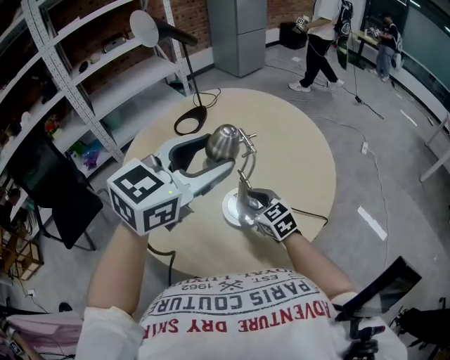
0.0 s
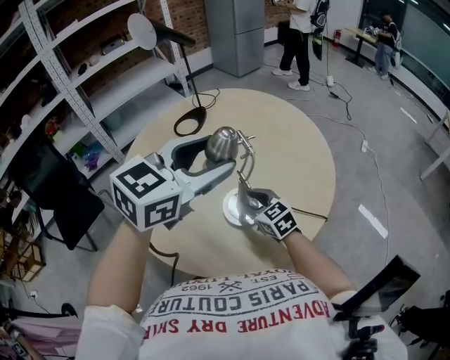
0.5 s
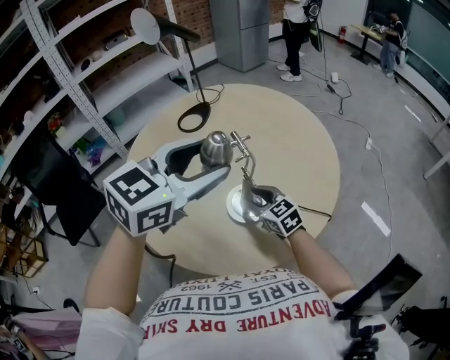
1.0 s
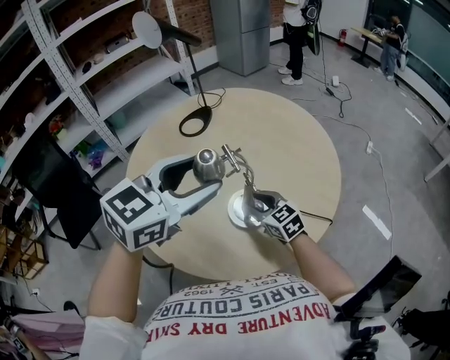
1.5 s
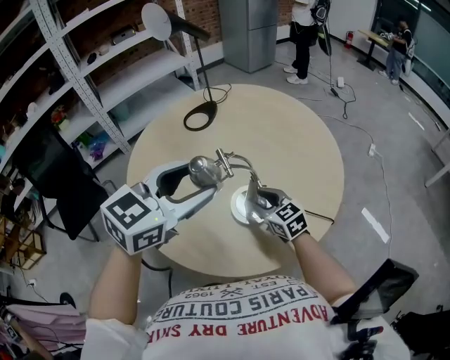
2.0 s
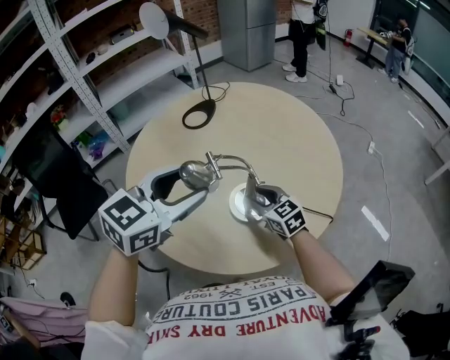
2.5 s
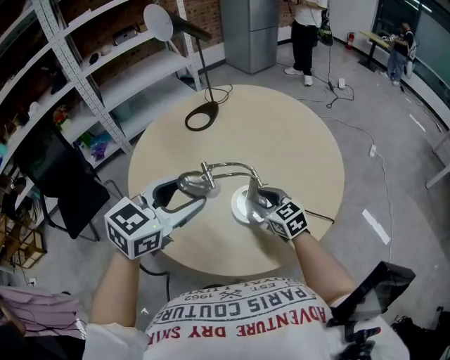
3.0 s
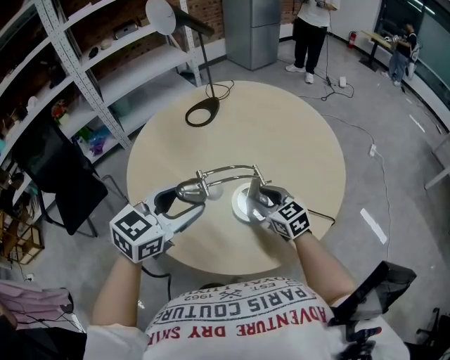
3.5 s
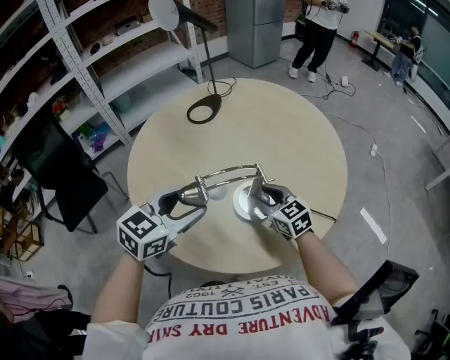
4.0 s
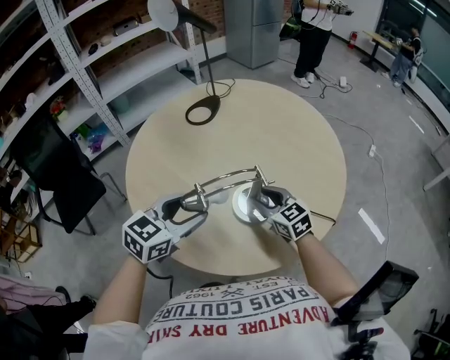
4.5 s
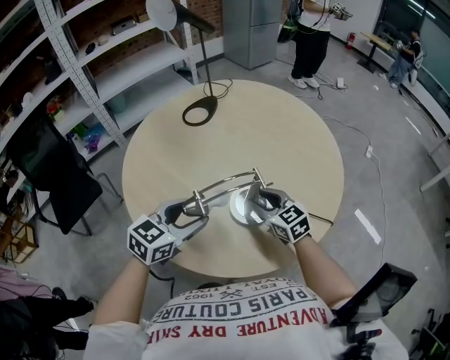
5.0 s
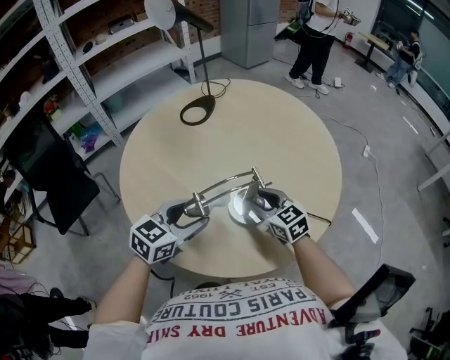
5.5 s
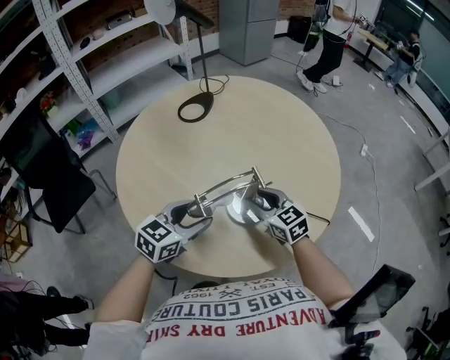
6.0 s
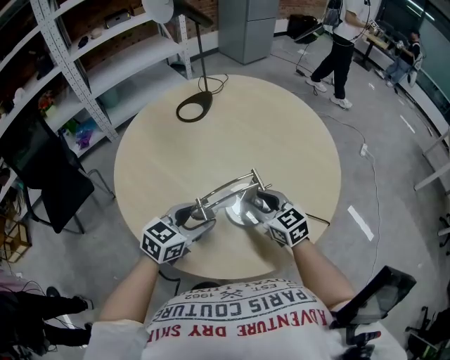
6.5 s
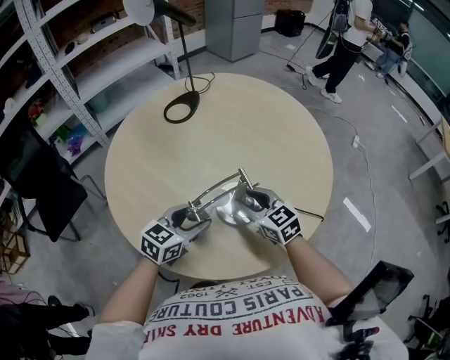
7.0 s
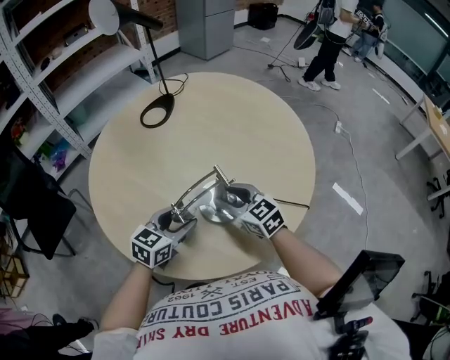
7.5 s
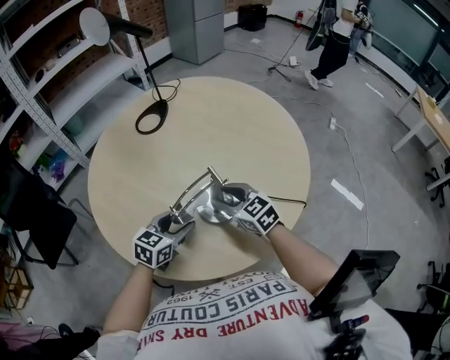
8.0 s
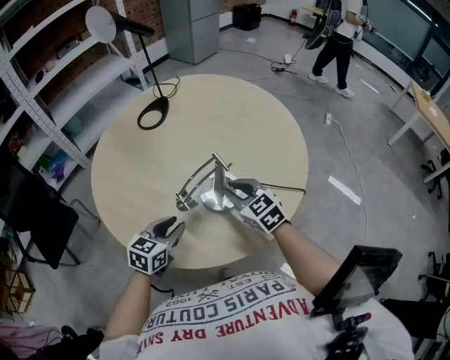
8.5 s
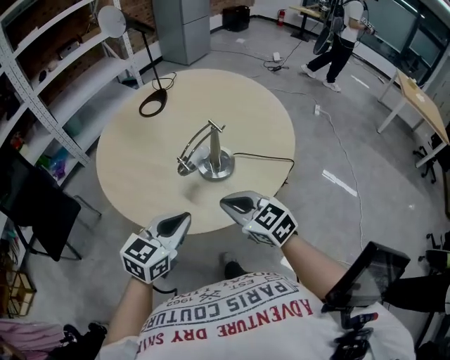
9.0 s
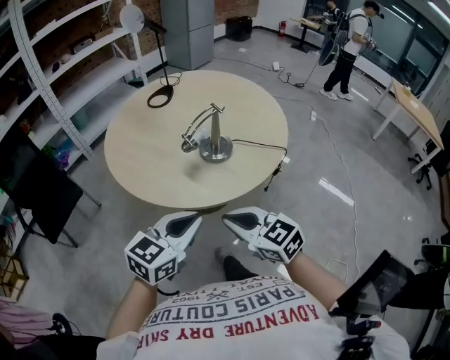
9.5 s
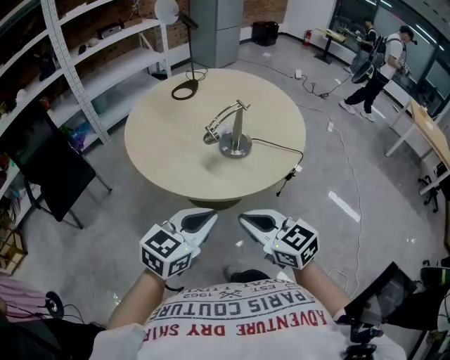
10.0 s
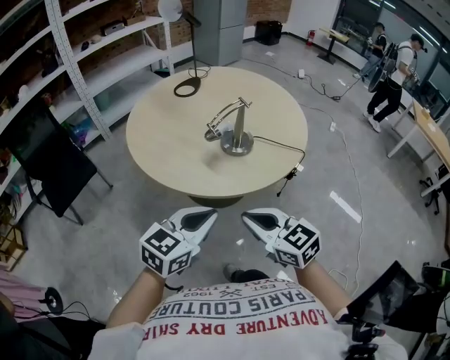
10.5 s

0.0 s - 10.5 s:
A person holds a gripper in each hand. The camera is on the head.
0.0 s - 2.0 s: The left gripper is displaced to the left by approximately 5 cm.
2.0 s - 4.0 s: The left gripper travels downward by roughly 10 cm.
4.0 s - 6.5 s: The left gripper heads downward, covering roughly 10 cm.
6.5 s - 8.5 s: The left gripper ends up approximately 5 cm from where it was. Meanwhile the right gripper closes up.
8.5 s - 10.5 s: The left gripper heads backward and upward, covering approximately 30 cm, and closes; the right gripper is displaced backward by some 35 cm.

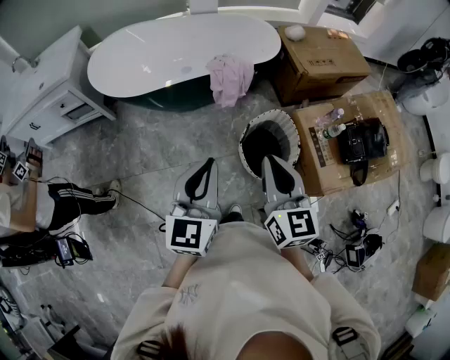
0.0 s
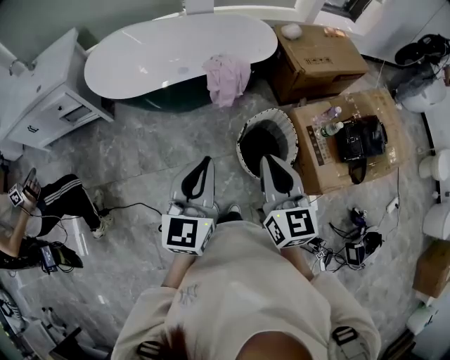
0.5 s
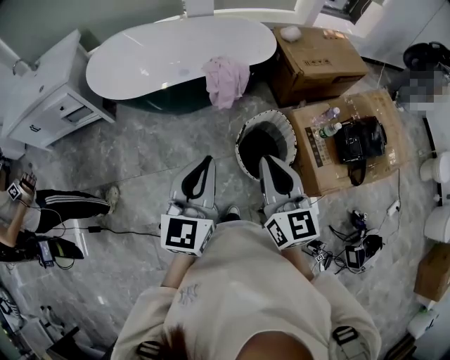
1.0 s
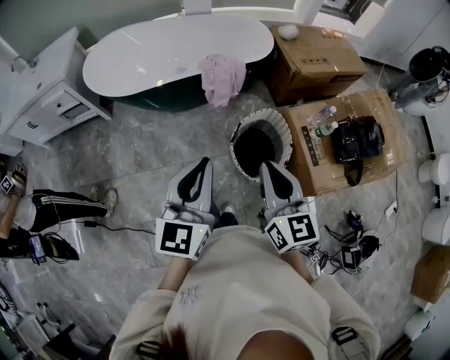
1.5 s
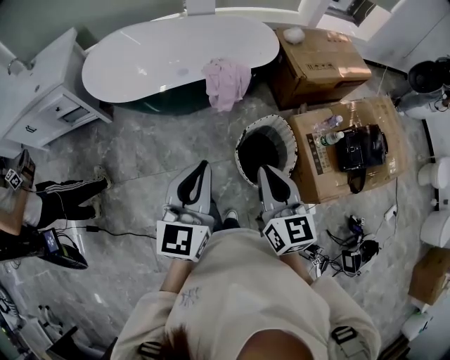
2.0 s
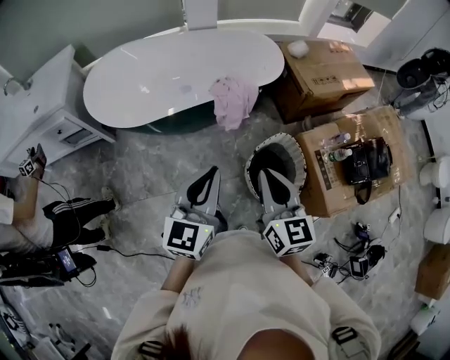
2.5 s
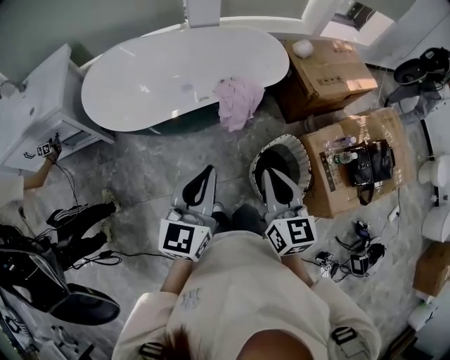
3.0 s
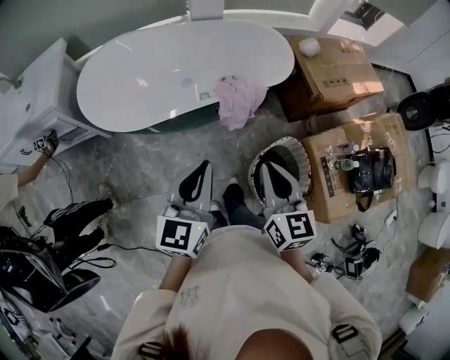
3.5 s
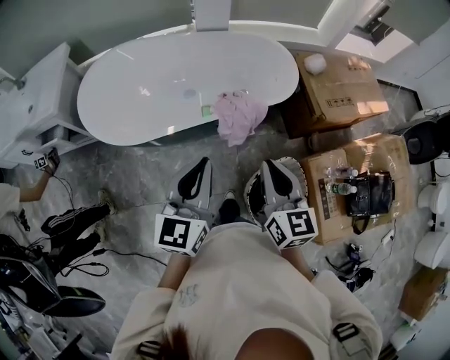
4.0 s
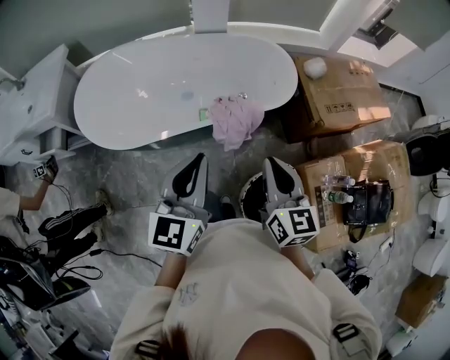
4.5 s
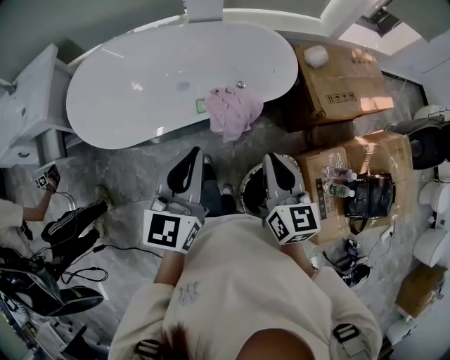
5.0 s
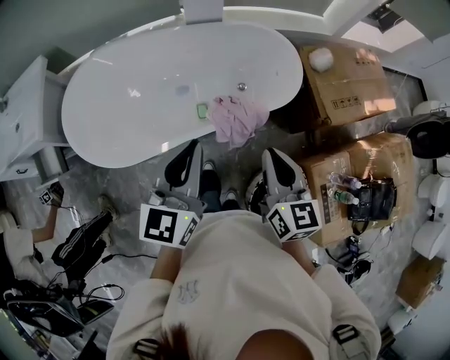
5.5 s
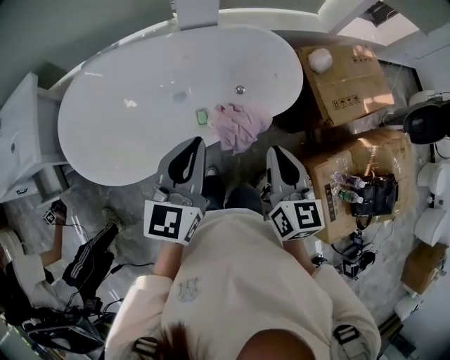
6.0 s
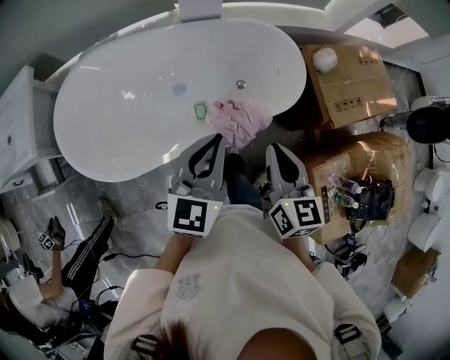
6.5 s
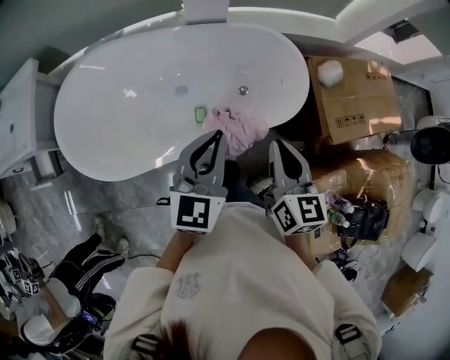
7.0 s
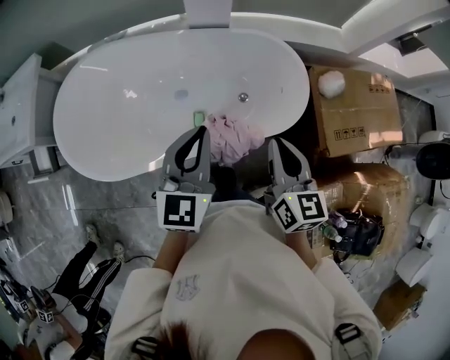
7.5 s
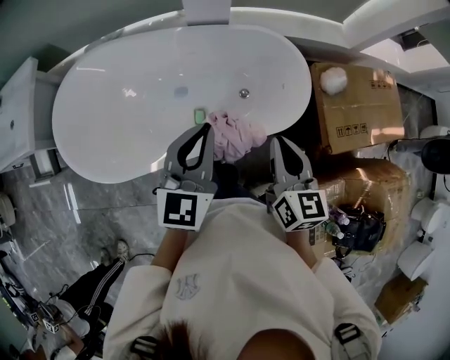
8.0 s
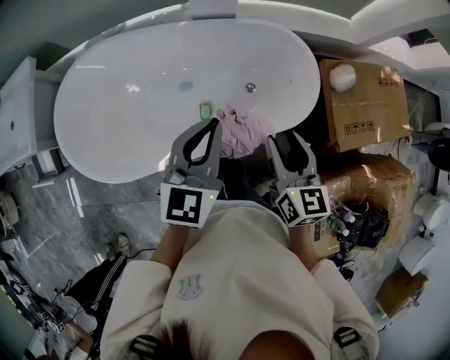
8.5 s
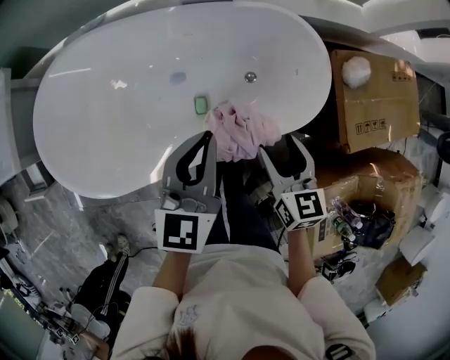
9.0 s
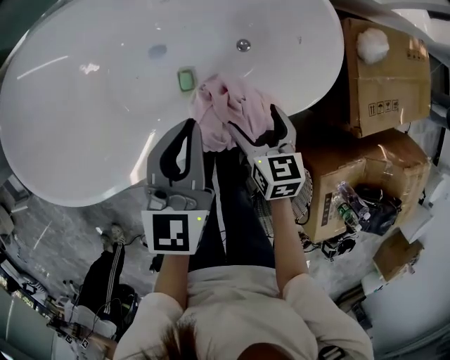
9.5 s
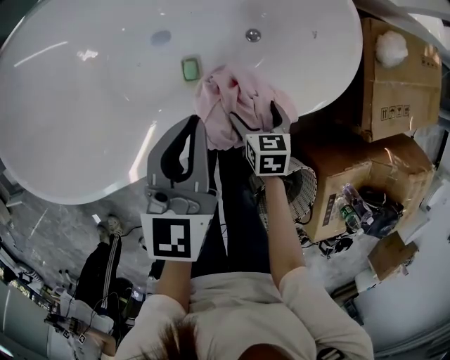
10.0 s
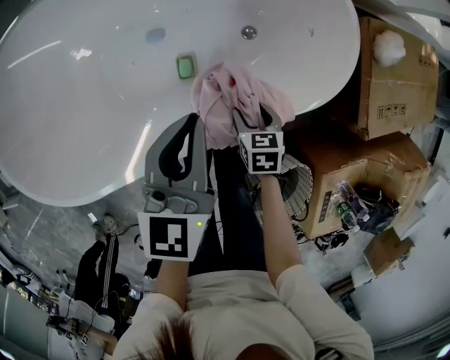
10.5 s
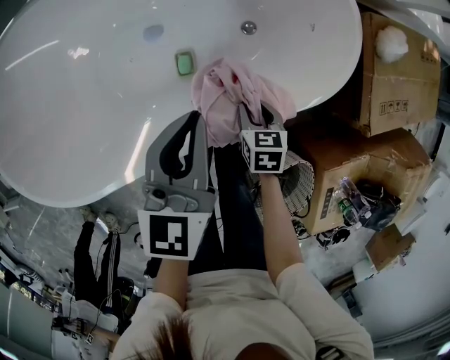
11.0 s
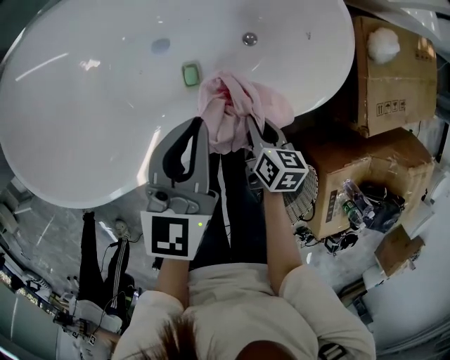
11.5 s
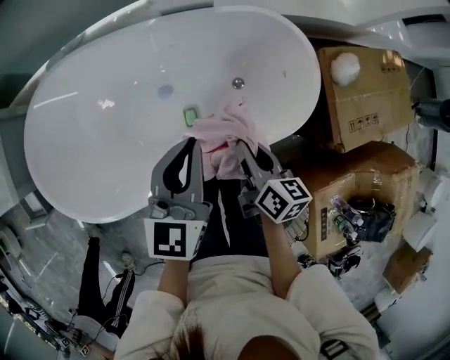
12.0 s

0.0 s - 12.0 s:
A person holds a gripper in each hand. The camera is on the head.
0.0 s - 2.0 s: The grippers move only a little.
2.0 s - 4.0 s: Both grippers move forward, approximately 30 cm.
4.0 s - 6.0 s: The two grippers go about 20 cm forward.
6.0 s - 8.0 s: Both grippers travel together forward and to the right, roughly 15 cm.
8.0 s - 10.0 s: The left gripper heads downward, covering some 25 cm. Meanwhile the right gripper moves downward, approximately 40 cm, points its fingers approximately 40 degrees further downward, and opens up.
10.0 s - 12.0 s: The left gripper goes some 15 cm upward. The right gripper heads upward, covering some 25 cm, changes its angle by some 40 degrees, and closes.

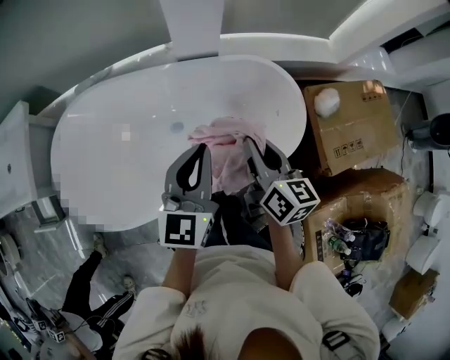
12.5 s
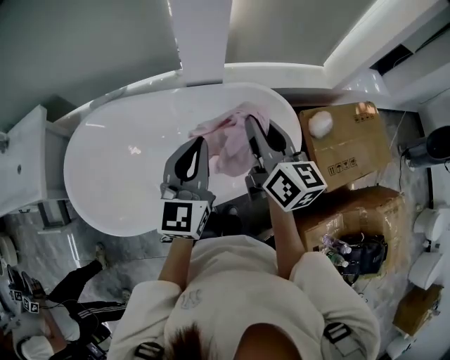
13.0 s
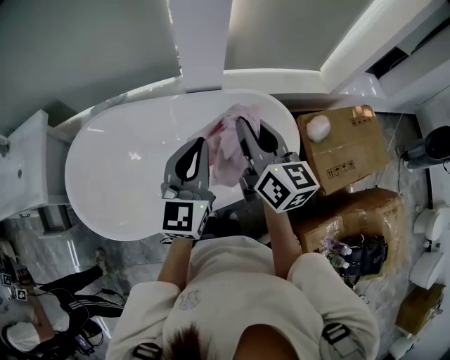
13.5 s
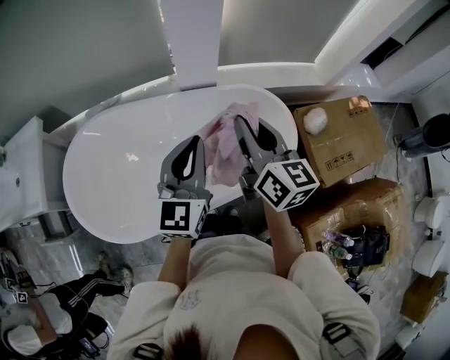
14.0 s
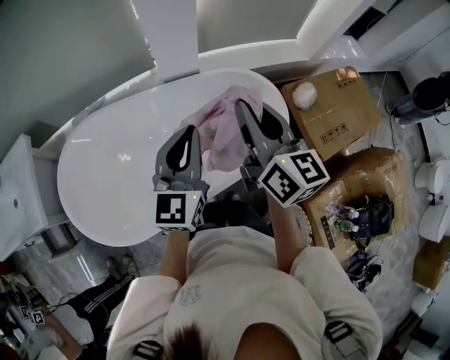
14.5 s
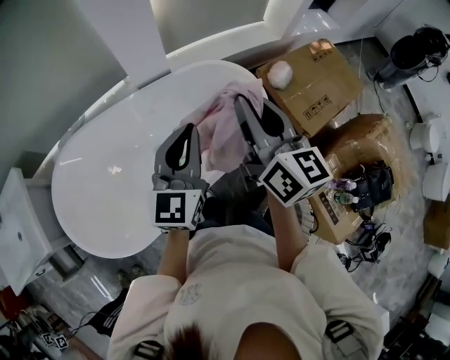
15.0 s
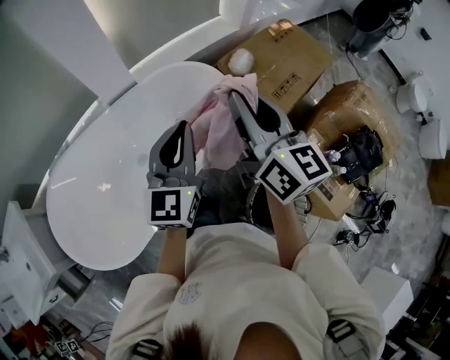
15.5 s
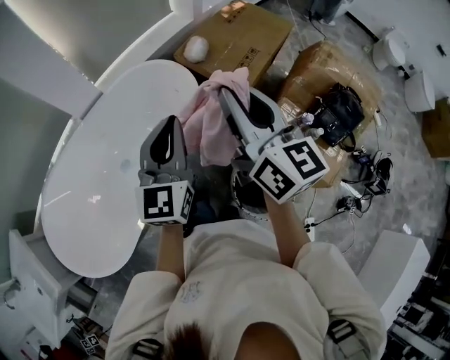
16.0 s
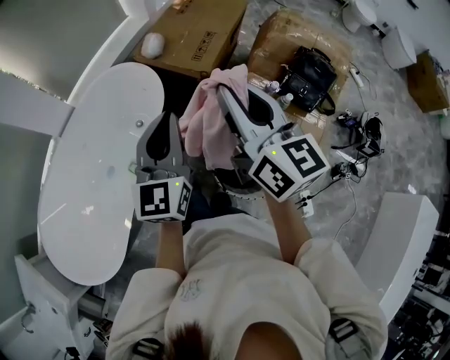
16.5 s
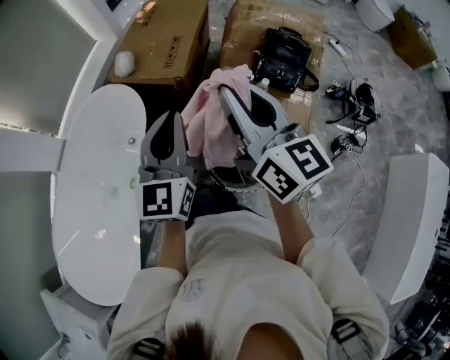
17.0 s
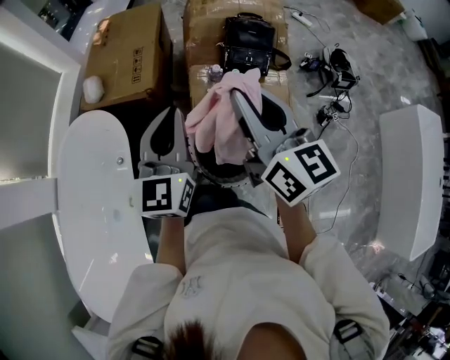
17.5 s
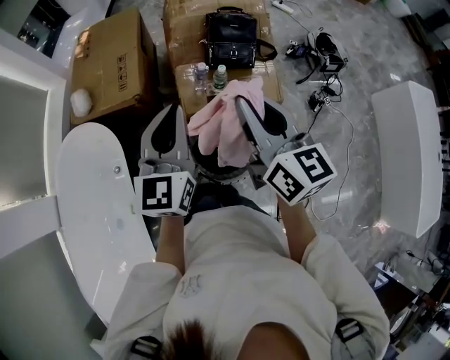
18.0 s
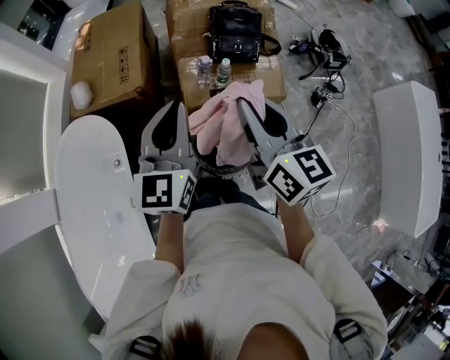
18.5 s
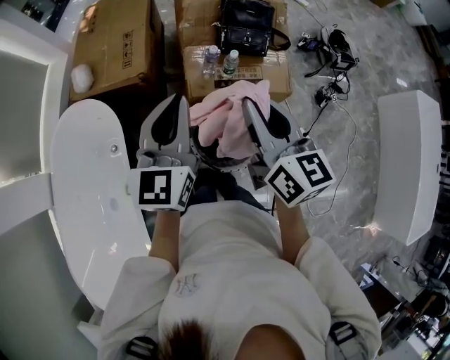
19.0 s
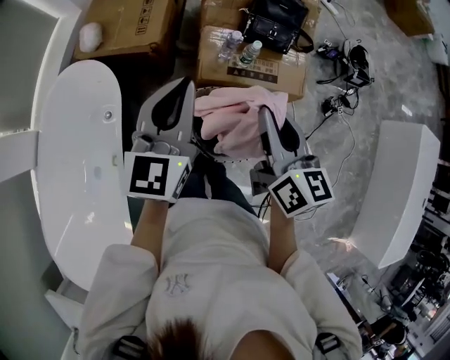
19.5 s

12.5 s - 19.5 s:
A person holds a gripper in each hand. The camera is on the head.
12.5 s - 14.5 s: The right gripper goes some 15 cm upward. Meanwhile the left gripper goes roughly 5 cm upward.
14.5 s - 16.0 s: The right gripper ends up roughly 35 cm from where it was, and changes its angle by approximately 30 degrees; the left gripper changes place by about 30 cm, and changes its angle by about 30 degrees.
16.0 s - 17.5 s: The right gripper changes place by approximately 30 cm, and rotates roughly 40 degrees; the left gripper changes place by approximately 30 cm, and swivels roughly 40 degrees.
17.5 s - 19.5 s: The right gripper goes about 10 cm downward.
